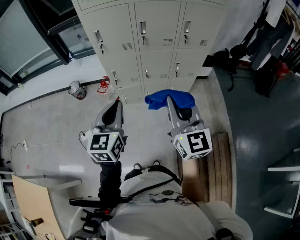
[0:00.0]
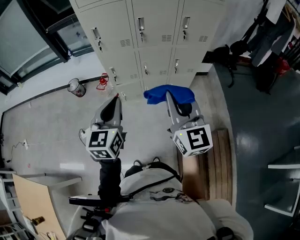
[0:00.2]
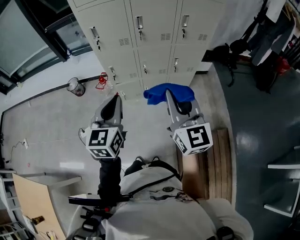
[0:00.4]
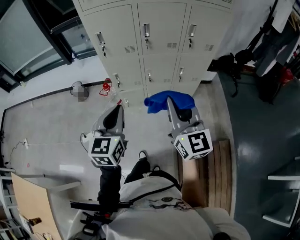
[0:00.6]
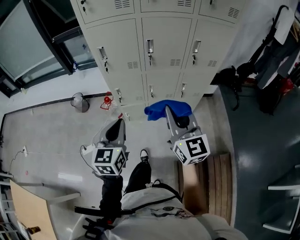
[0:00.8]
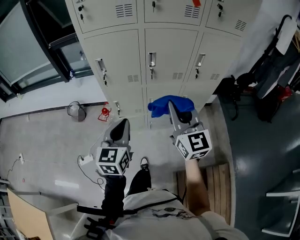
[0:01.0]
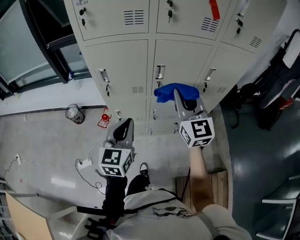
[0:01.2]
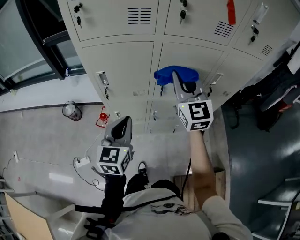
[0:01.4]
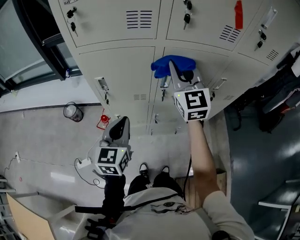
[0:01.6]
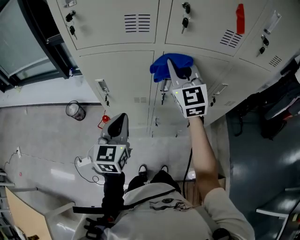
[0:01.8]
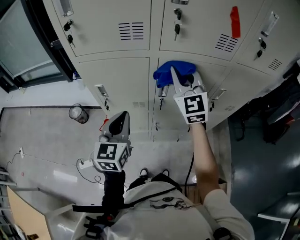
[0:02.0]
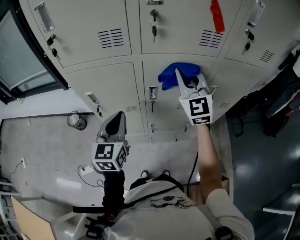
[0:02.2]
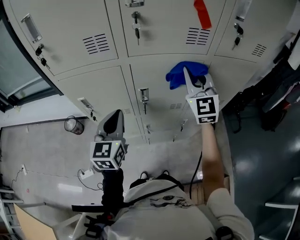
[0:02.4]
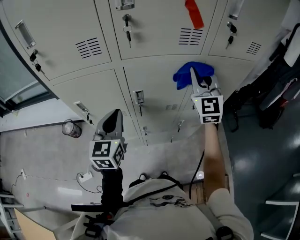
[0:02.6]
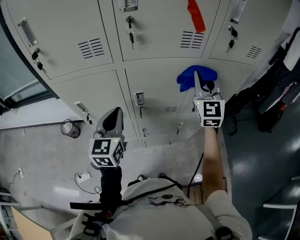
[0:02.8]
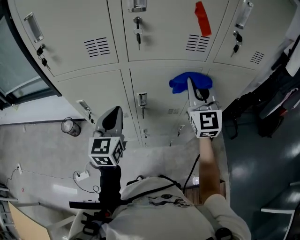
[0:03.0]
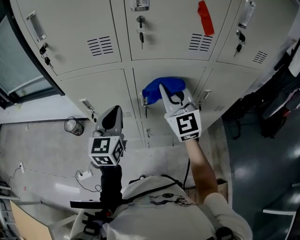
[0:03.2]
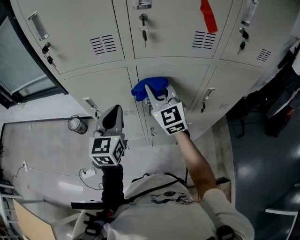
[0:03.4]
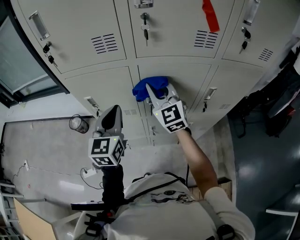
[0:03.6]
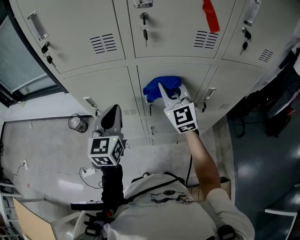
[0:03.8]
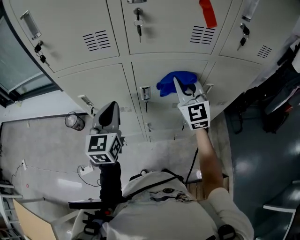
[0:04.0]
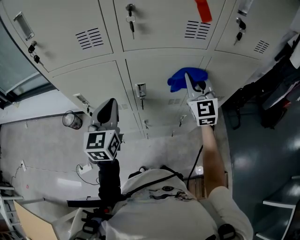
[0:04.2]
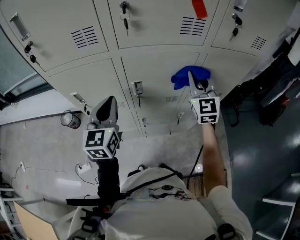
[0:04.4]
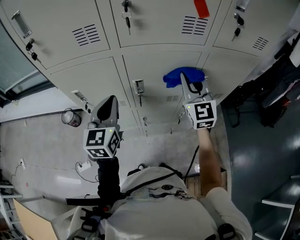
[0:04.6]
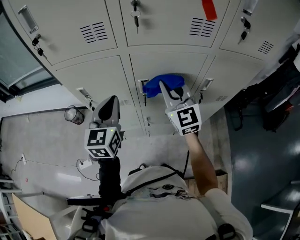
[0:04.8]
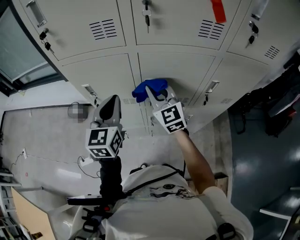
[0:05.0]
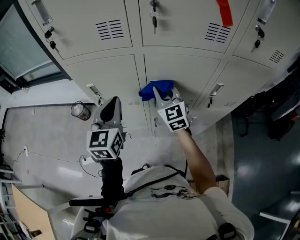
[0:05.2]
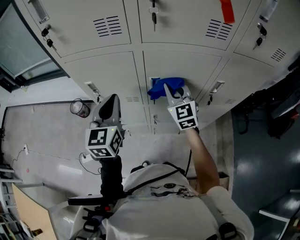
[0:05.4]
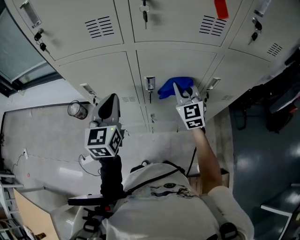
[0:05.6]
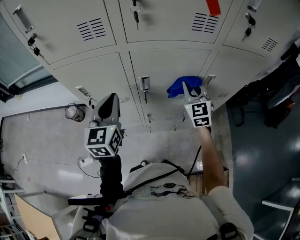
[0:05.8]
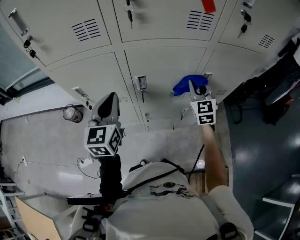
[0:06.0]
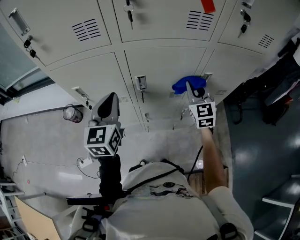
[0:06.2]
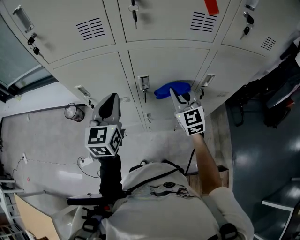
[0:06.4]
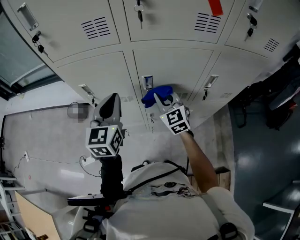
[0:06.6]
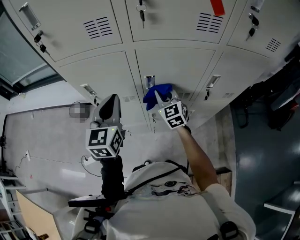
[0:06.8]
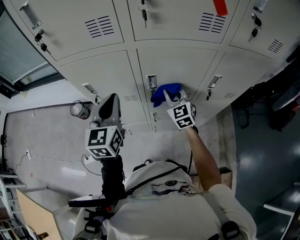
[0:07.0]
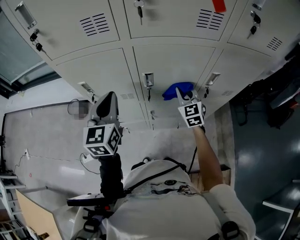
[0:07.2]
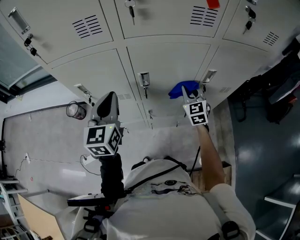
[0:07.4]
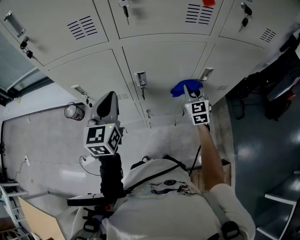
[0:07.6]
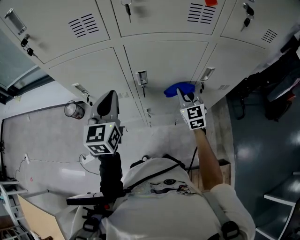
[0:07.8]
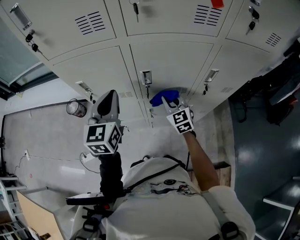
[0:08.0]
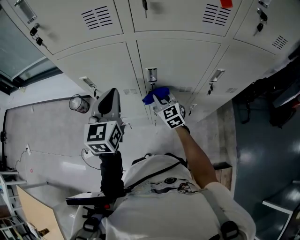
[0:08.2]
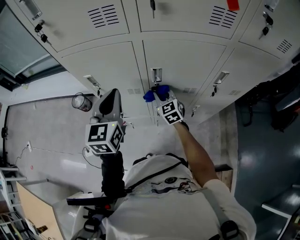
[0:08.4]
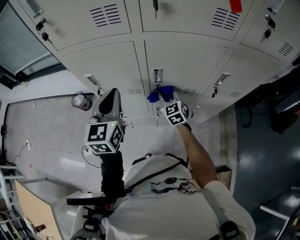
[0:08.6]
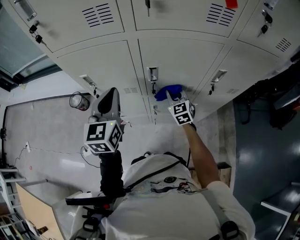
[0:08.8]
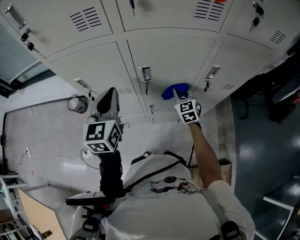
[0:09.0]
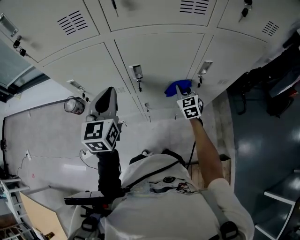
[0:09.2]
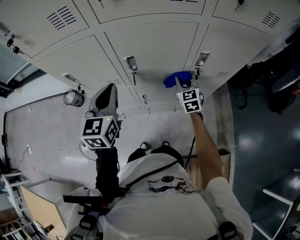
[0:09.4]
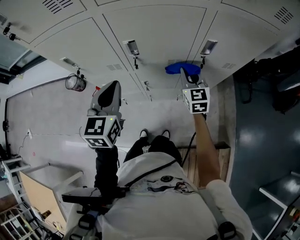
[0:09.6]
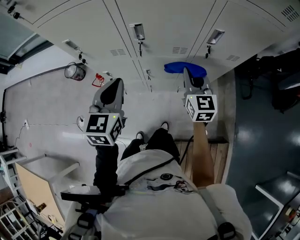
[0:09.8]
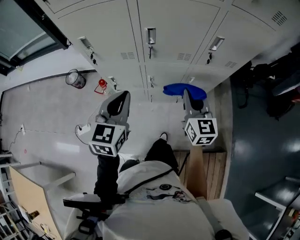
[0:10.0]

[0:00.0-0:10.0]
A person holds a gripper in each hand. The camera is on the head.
0:00.0 to 0:01.4: The two grippers go roughly 40 cm forward.
0:01.4 to 0:02.8: The right gripper is displaced to the right by approximately 20 cm. Meanwhile the left gripper goes approximately 15 cm forward, to the right and upward.
0:02.8 to 0:04.2: The right gripper travels downward by roughly 5 cm, and goes to the left and returns, about 20 cm each way.
0:04.2 to 0:05.8: The right gripper moves downward, roughly 10 cm, and travels to the left and back again, roughly 20 cm each way.
0:05.8 to 0:07.2: The right gripper swings left and right, roughly 20 cm each way, with 2 reversals.
0:07.2 to 0:08.6: The right gripper goes about 15 cm to the left and downward.
0:08.6 to 0:10.0: The left gripper shifts some 20 cm backward, downward and to the right. Meanwhile the right gripper heads backward, to the right and upward, covering some 25 cm, and swivels about 30 degrees.

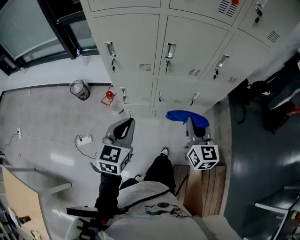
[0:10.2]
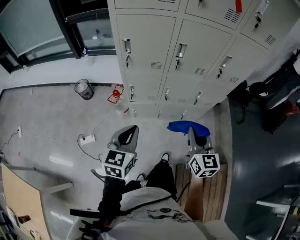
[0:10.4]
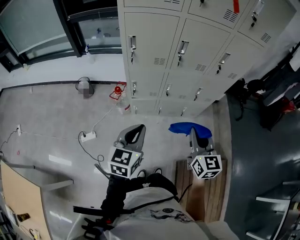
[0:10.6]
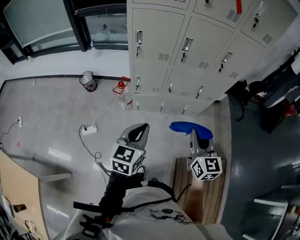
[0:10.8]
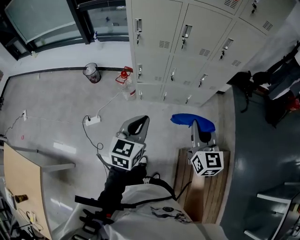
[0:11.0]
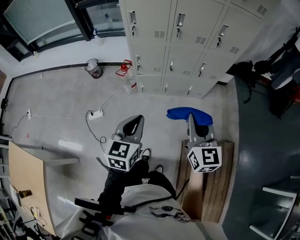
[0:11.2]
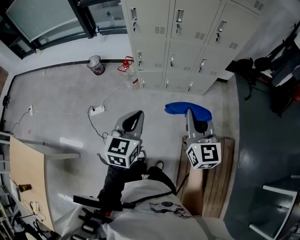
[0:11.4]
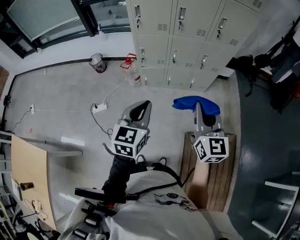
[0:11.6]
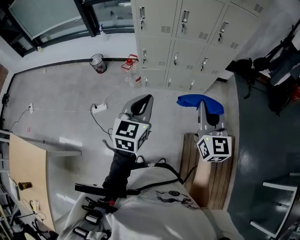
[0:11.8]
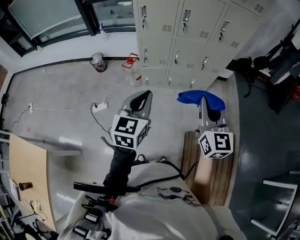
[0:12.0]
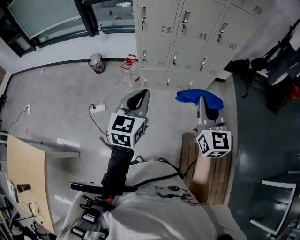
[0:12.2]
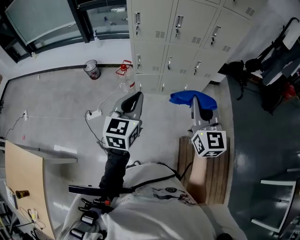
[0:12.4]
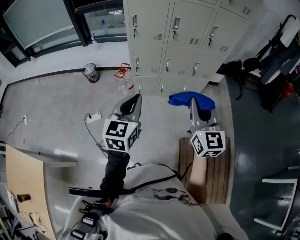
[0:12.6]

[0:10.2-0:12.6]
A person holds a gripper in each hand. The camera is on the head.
0:10.2 to 0:11.4: The grippers both shift backward by approximately 30 cm.
0:11.4 to 0:12.6: The left gripper shifts approximately 10 cm upward and to the left, while the right gripper travels upward by approximately 5 cm.

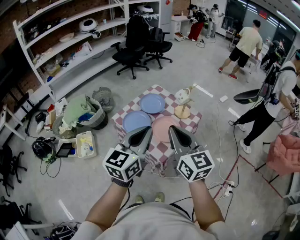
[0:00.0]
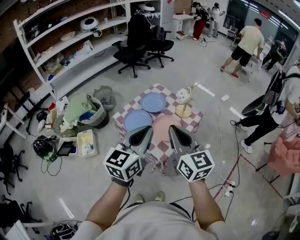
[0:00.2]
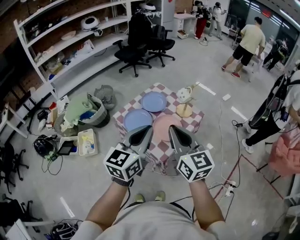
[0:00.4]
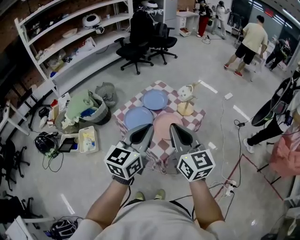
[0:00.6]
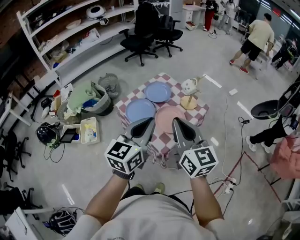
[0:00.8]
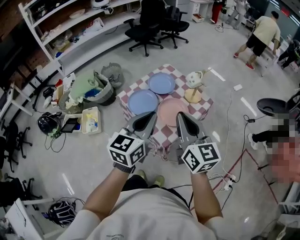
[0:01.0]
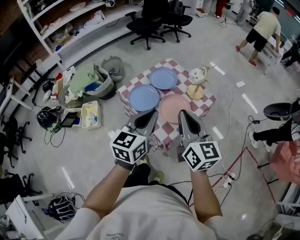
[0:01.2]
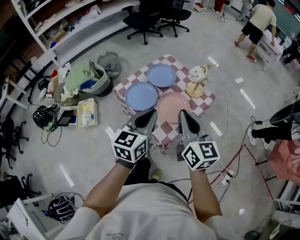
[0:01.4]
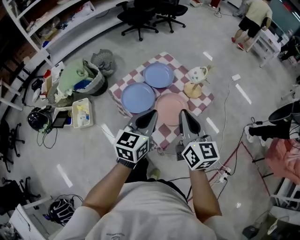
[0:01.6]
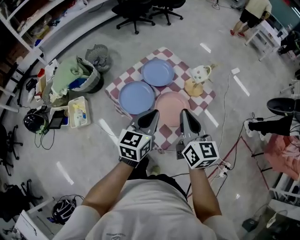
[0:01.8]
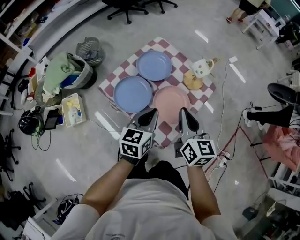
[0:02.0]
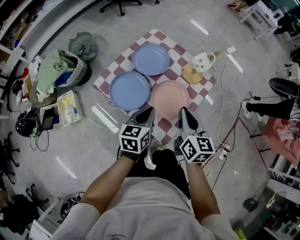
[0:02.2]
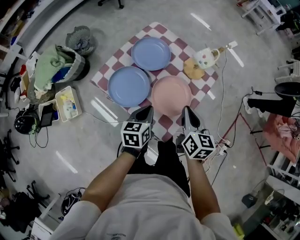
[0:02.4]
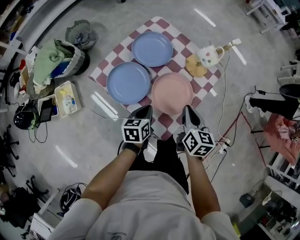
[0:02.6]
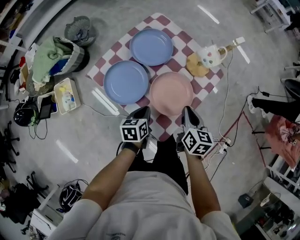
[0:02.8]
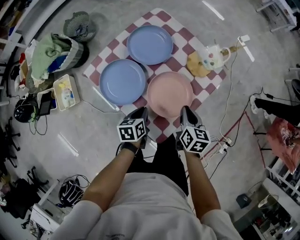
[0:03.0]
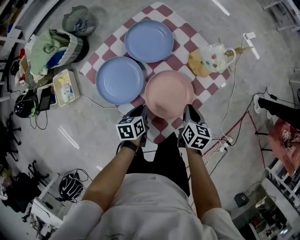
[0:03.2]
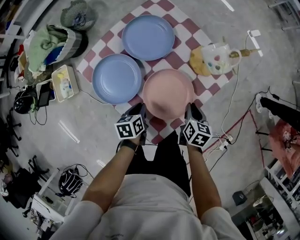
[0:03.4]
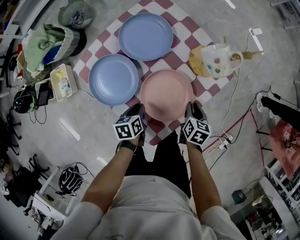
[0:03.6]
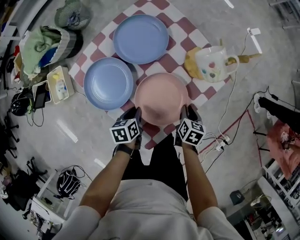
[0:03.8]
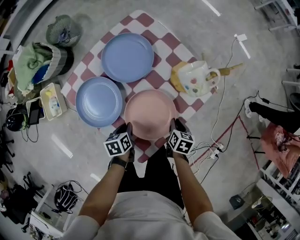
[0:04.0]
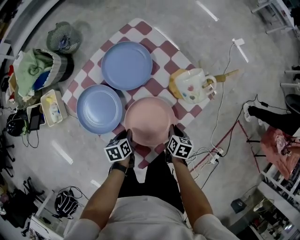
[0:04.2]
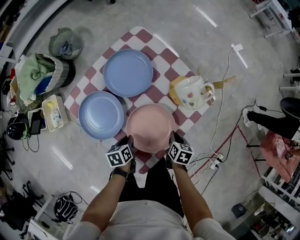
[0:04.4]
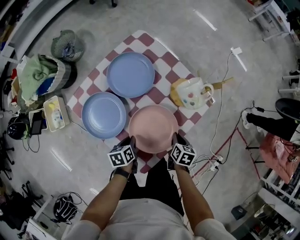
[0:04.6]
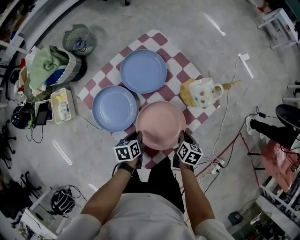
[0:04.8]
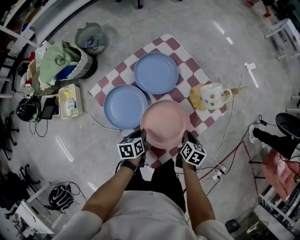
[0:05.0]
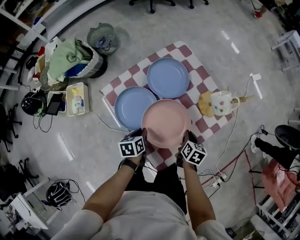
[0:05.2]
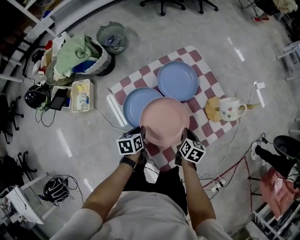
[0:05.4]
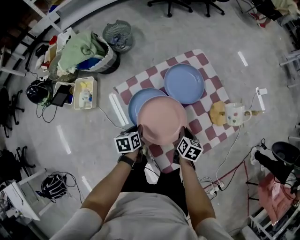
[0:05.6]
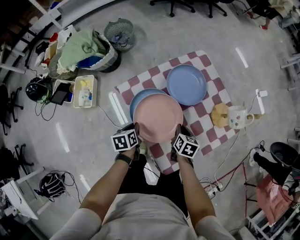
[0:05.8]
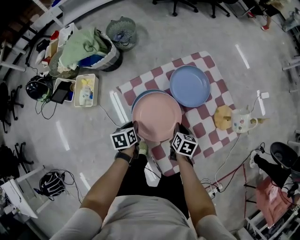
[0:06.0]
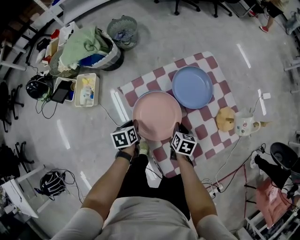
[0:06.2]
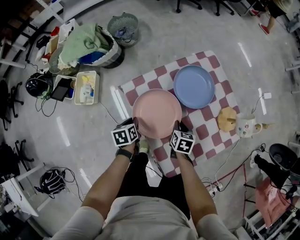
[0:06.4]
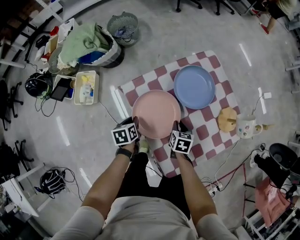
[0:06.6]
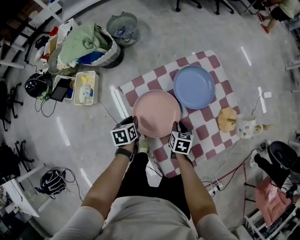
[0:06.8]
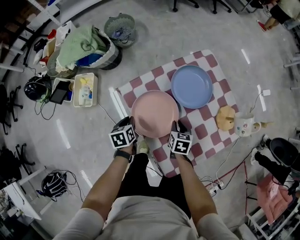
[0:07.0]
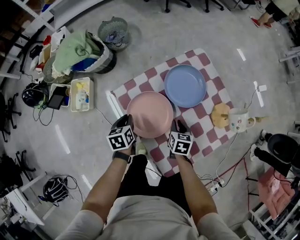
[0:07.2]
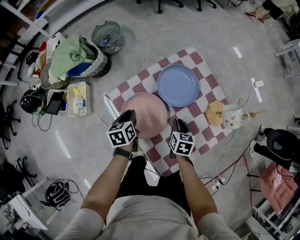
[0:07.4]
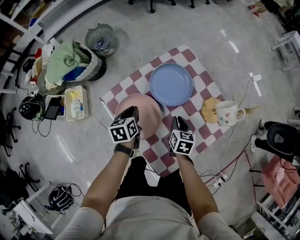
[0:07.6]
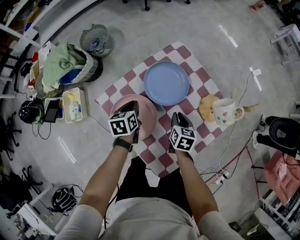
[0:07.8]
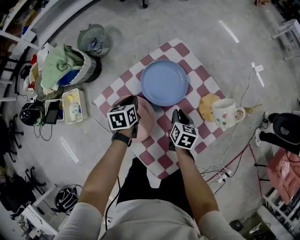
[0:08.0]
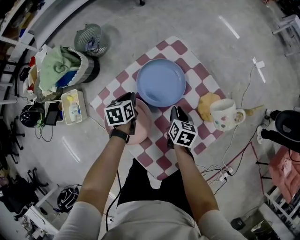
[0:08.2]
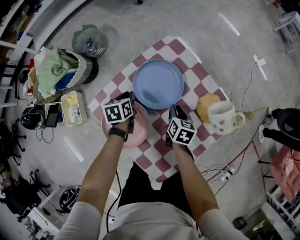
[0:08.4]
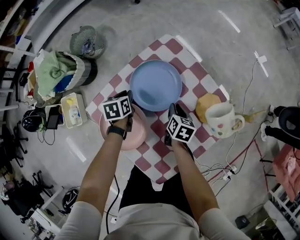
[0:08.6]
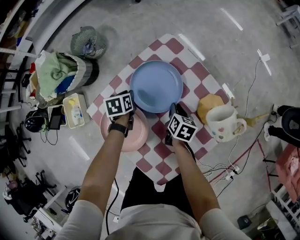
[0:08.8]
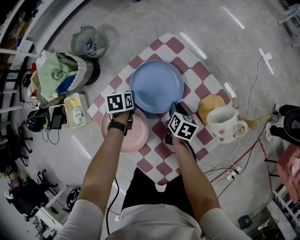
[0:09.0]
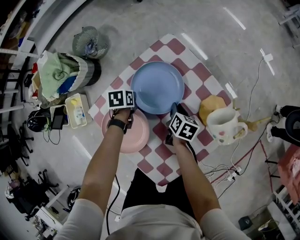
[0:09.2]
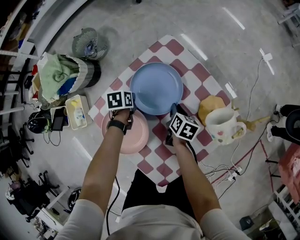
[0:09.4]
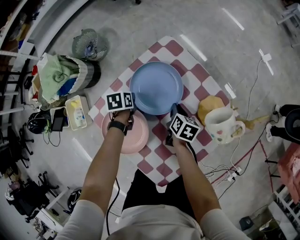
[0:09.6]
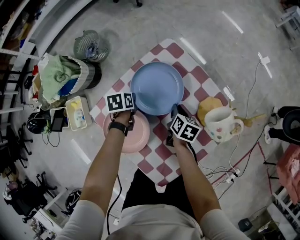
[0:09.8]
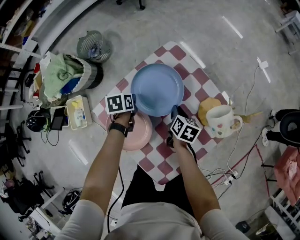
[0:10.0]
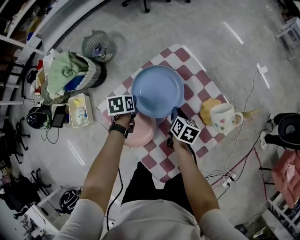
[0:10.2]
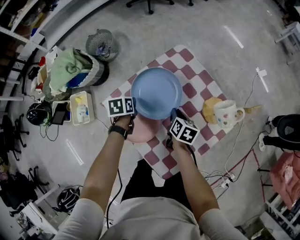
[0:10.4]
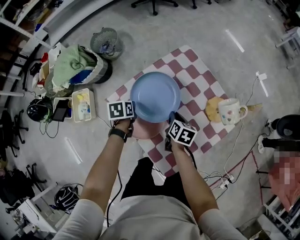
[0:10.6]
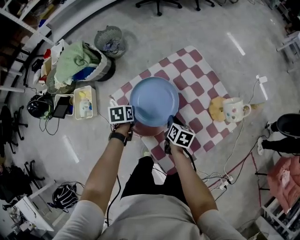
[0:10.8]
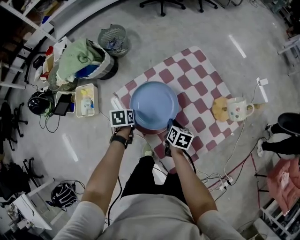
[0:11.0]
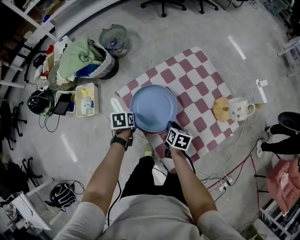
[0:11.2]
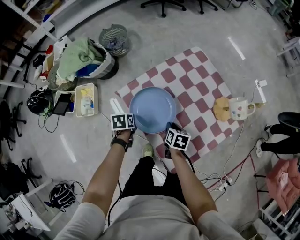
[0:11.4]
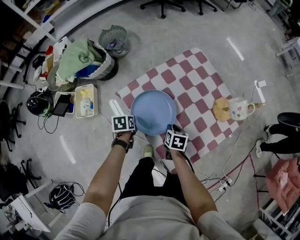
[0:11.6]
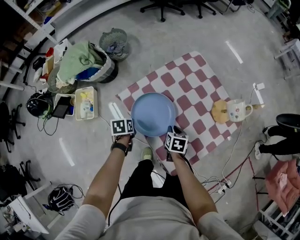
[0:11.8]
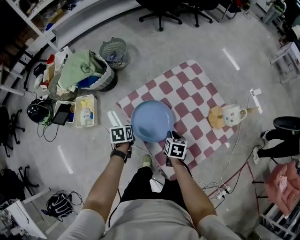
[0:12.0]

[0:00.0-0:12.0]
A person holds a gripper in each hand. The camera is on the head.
0:00.0 to 0:01.6: The left gripper shifts about 20 cm downward and forward, while the right gripper moves forward and downward, approximately 15 cm.
0:01.6 to 0:03.0: Both grippers travel together downward, approximately 35 cm. The right gripper points its fingers about 30 degrees further downward. The left gripper points its fingers some 30 degrees further downward.
0:03.0 to 0:04.4: The right gripper goes roughly 15 cm downward and to the right, and swivels approximately 20 degrees; the left gripper travels downward by about 10 cm.
0:04.4 to 0:06.0: Both grippers move to the left, roughly 25 cm. The right gripper rotates roughly 20 degrees.
0:06.0 to 0:07.6: The right gripper travels to the right by some 5 cm, while the left gripper heads forward, to the right and upward, covering roughly 15 cm.
0:07.6 to 0:09.0: The right gripper is displaced forward, downward and to the right by about 15 cm, and changes its angle by about 20 degrees. The left gripper goes roughly 15 cm forward and downward, and swivels roughly 20 degrees.
0:09.0 to 0:10.4: The right gripper is displaced upward and backward by roughly 10 cm; the left gripper heads backward and upward, covering roughly 10 cm.
0:10.4 to 0:12.0: Both grippers move backward and to the left, roughly 15 cm. The right gripper rotates approximately 20 degrees.
